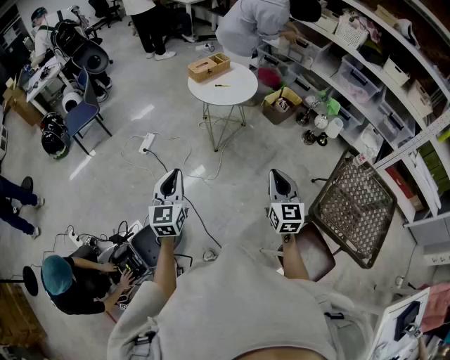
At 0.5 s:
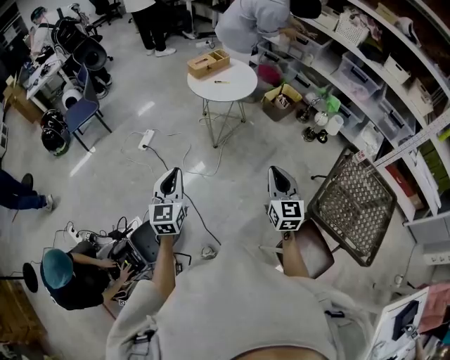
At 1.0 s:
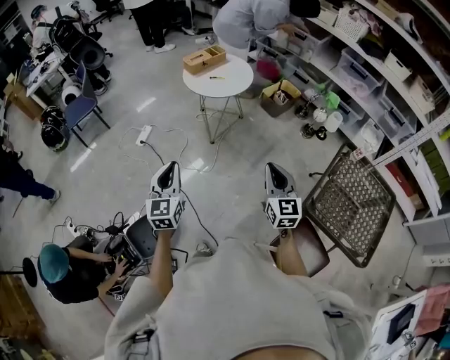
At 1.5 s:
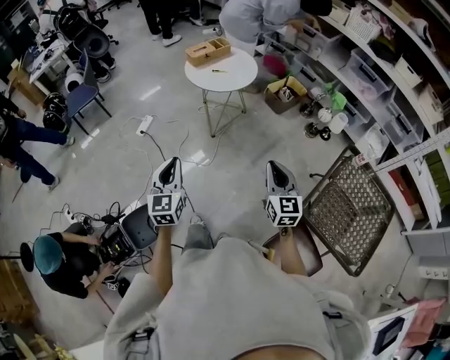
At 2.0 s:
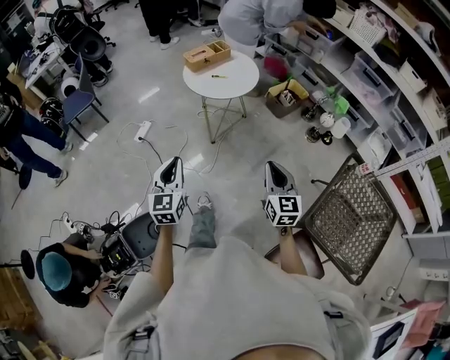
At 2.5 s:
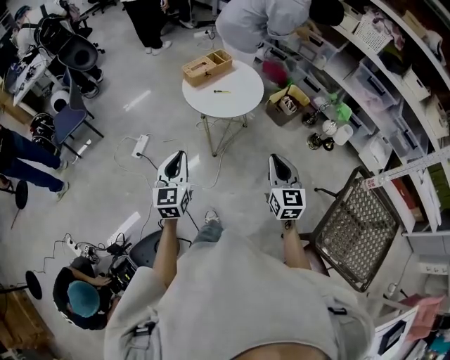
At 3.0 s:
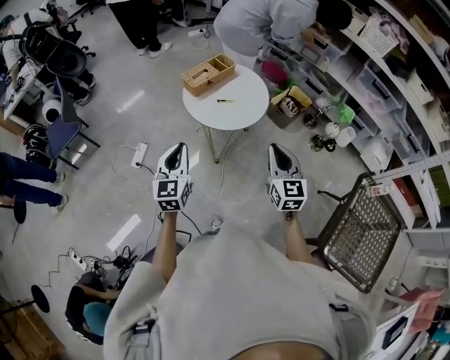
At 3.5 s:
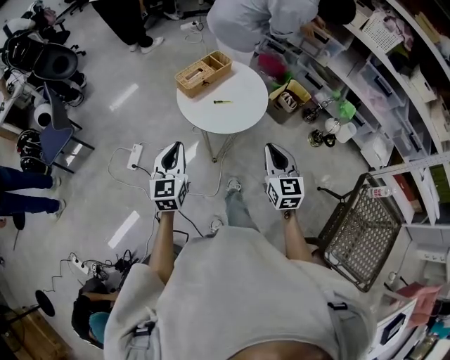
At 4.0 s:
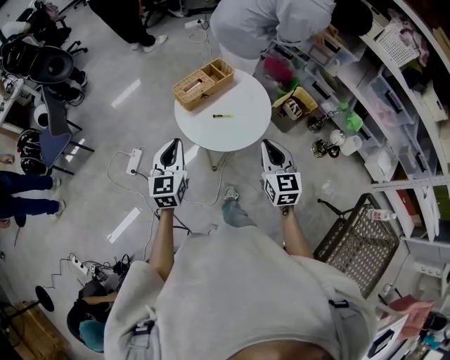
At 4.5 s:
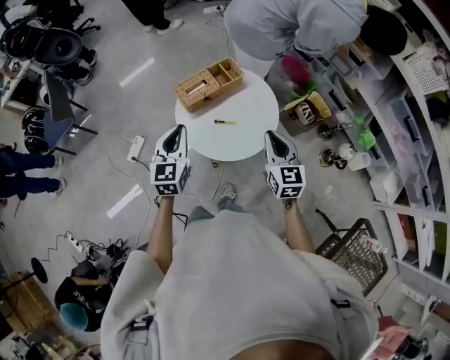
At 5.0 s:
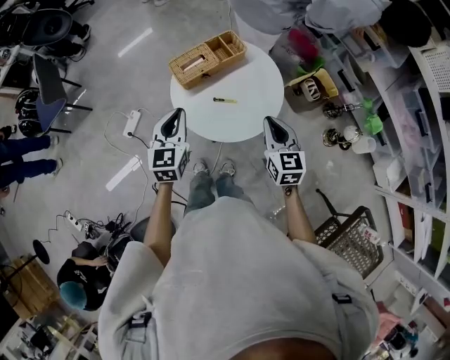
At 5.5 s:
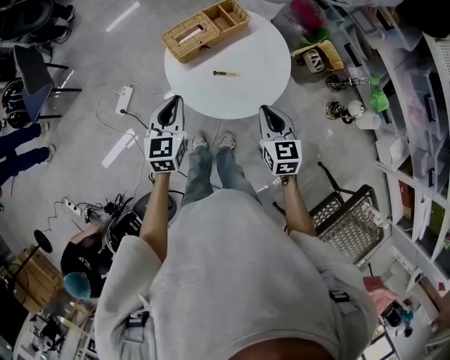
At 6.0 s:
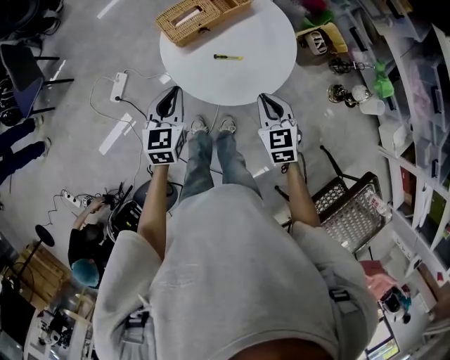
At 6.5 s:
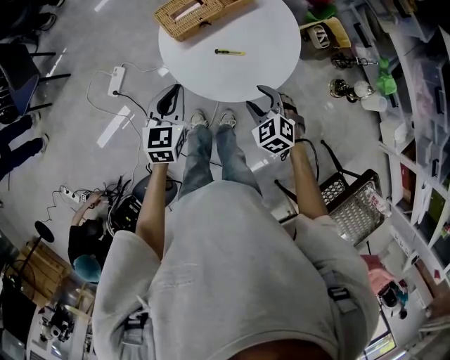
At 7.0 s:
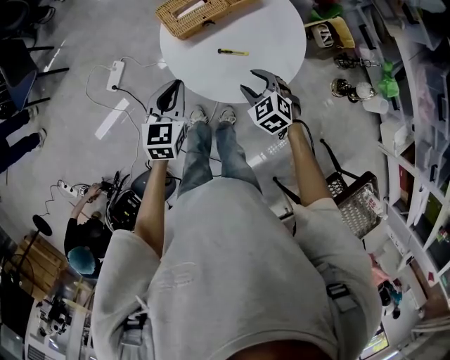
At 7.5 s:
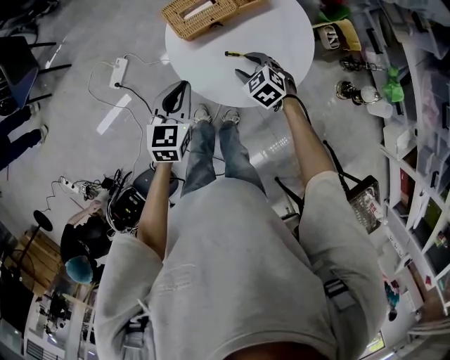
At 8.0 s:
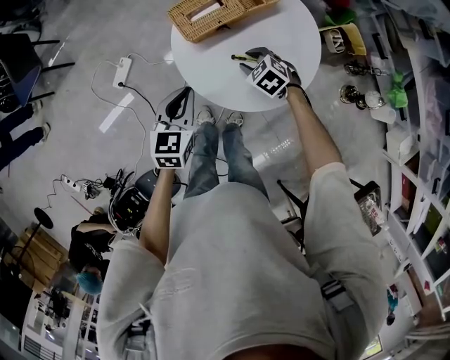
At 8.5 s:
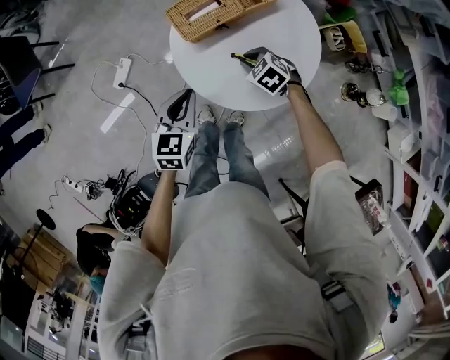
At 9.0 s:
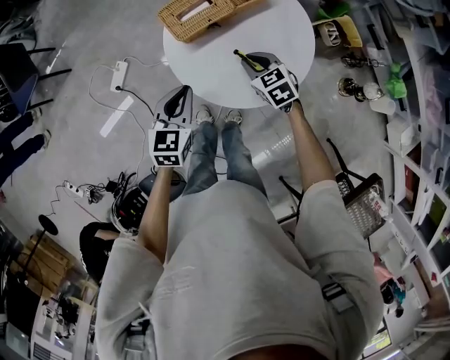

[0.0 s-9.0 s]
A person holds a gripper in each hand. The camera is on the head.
0.0 to 2.0 s: Both grippers travel together forward and to the right, roughly 10 cm.
2.0 to 4.5 s: The two grippers travel together, forward, approximately 50 cm.
4.5 to 7.0 s: The right gripper shifts approximately 25 cm downward and to the left, points its fingers roughly 40 degrees further downward, and opens. The left gripper moves downward, roughly 15 cm.
7.0 to 9.0 s: The right gripper heads forward, covering some 10 cm, and closes up.

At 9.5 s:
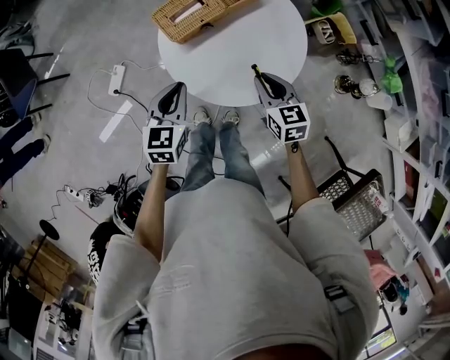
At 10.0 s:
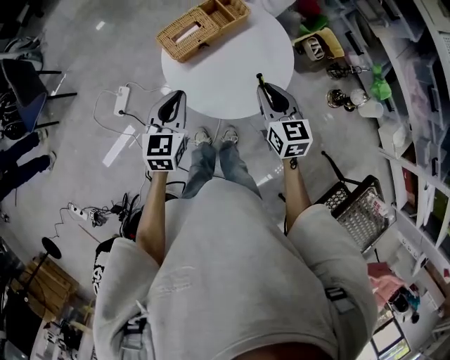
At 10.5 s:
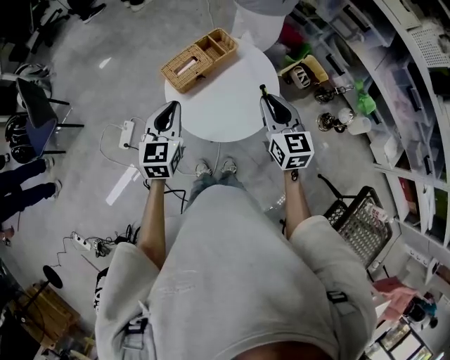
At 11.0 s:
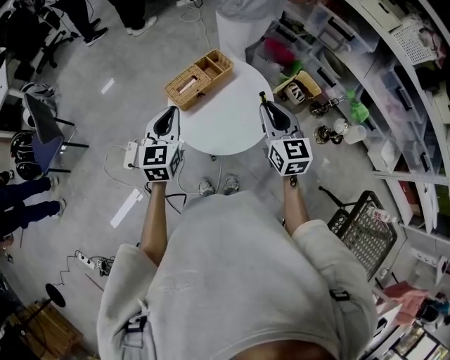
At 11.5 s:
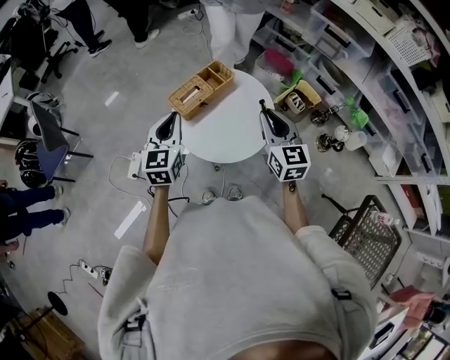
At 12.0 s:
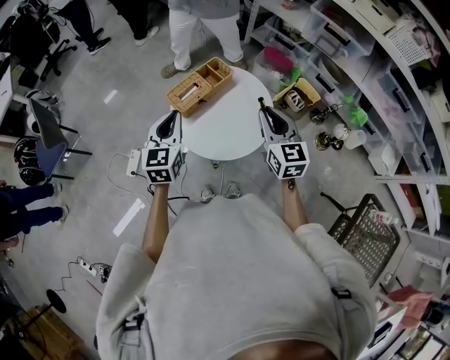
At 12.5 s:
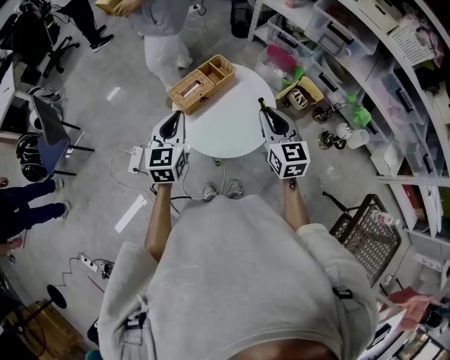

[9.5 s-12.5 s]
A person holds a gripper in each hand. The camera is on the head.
9.5 to 11.0 s: Both grippers move upward, some 20 cm. The right gripper rotates some 30 degrees.
11.0 to 12.5 s: The grippers move only a little.

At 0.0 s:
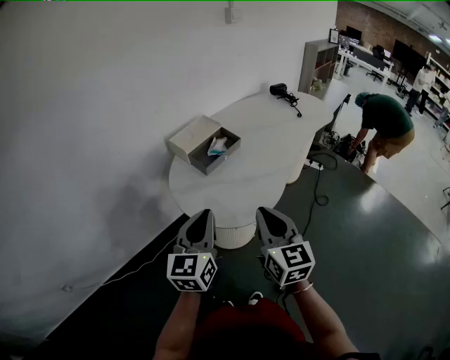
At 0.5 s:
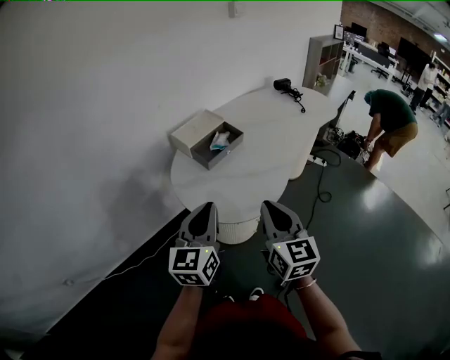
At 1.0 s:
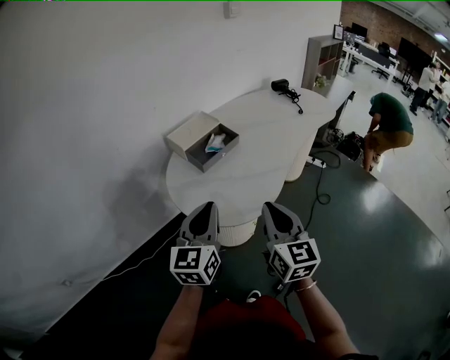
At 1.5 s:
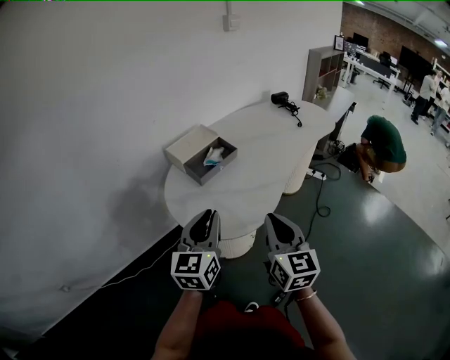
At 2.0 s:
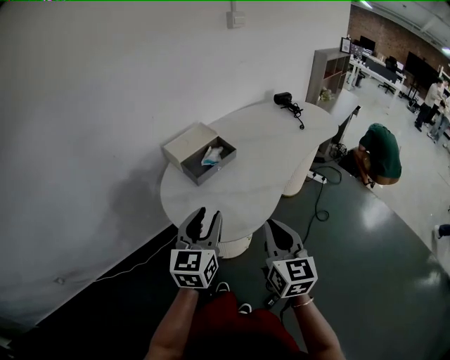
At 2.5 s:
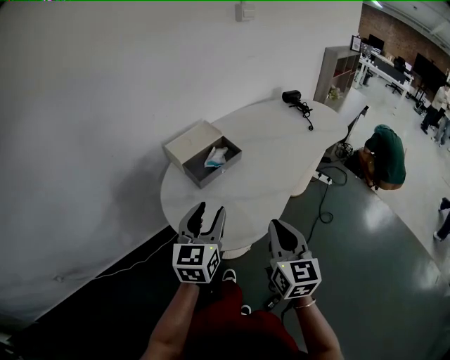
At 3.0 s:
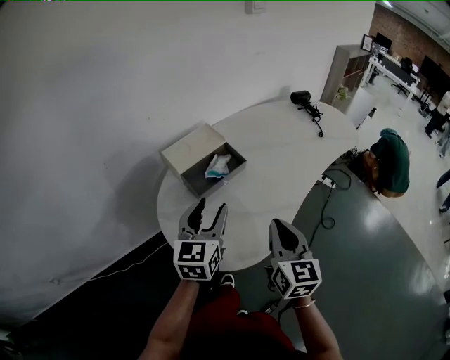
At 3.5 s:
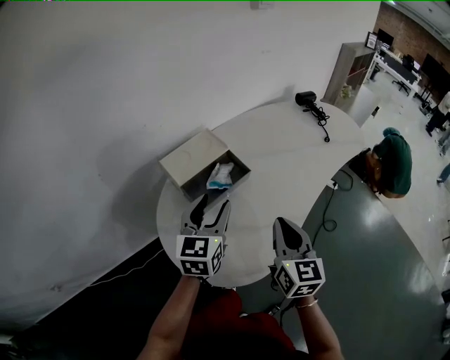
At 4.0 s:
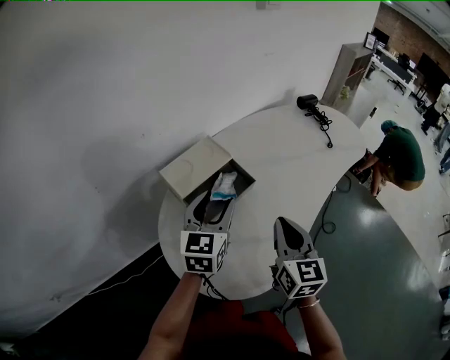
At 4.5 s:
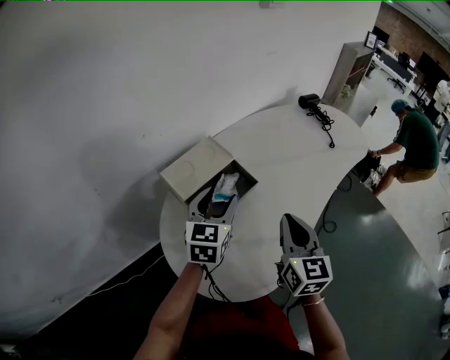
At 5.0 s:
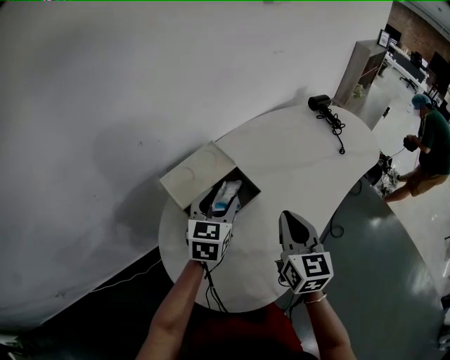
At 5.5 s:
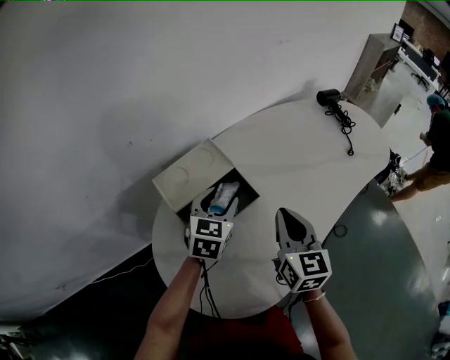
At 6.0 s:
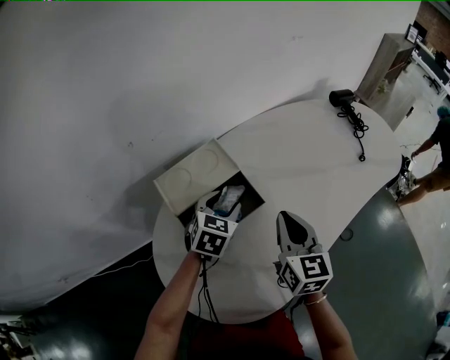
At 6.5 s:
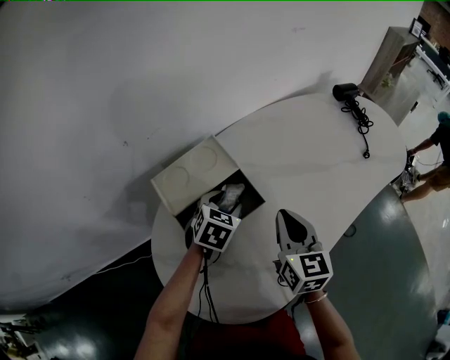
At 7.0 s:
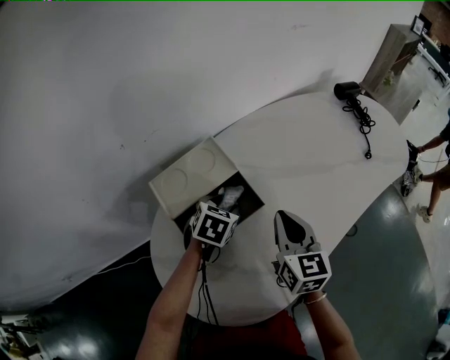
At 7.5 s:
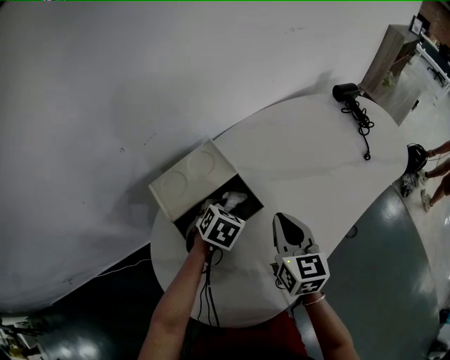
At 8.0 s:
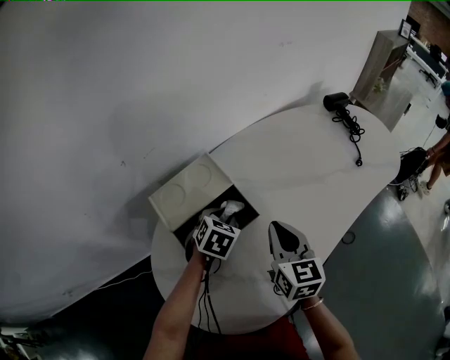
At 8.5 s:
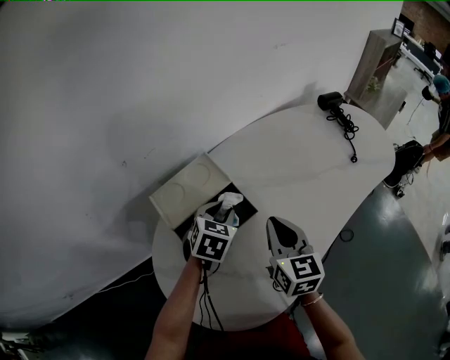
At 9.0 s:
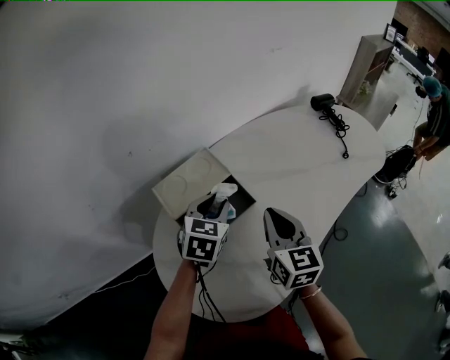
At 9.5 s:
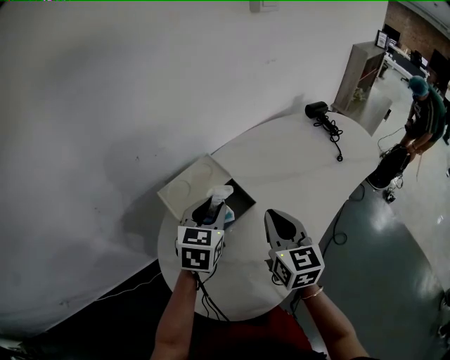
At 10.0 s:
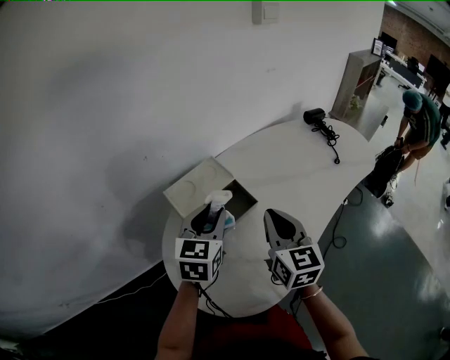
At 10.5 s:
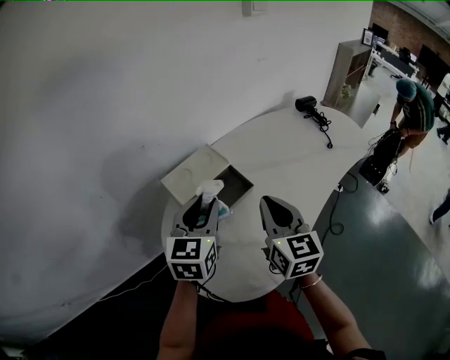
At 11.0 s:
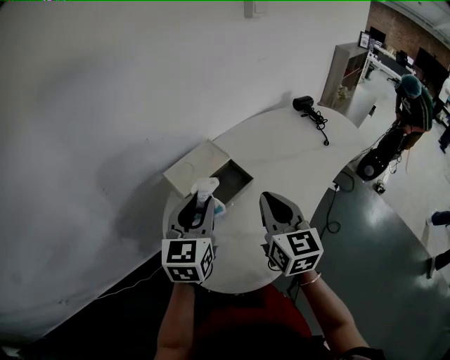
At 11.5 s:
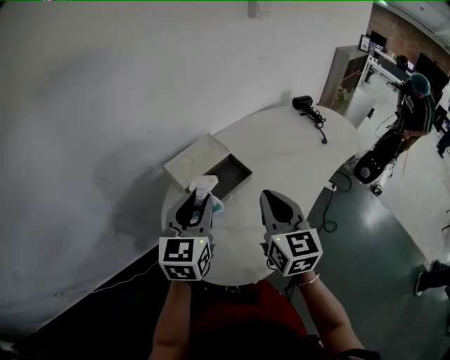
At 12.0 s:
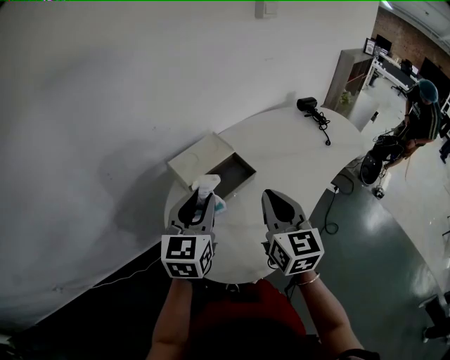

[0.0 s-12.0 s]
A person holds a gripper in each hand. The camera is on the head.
0.0 to 2.0 s: The right gripper moves to the right, approximately 10 cm; the left gripper travels to the right and forward by approximately 10 cm, and opens up.
2.0 to 4.0 s: The grippers both shift forward by about 25 cm.
4.0 to 6.0 s: The left gripper travels downward and forward by roughly 20 cm, and changes its angle by approximately 30 degrees; the right gripper is displaced forward by some 15 cm.
6.0 to 8.0 s: The left gripper closes up.
8.0 to 10.0 s: The left gripper shifts some 20 cm upward and backward, and tips its fingers upward by some 40 degrees, while the right gripper heads upward and backward, covering about 15 cm.
10.0 to 12.0 s: The two grippers go approximately 10 cm backward.

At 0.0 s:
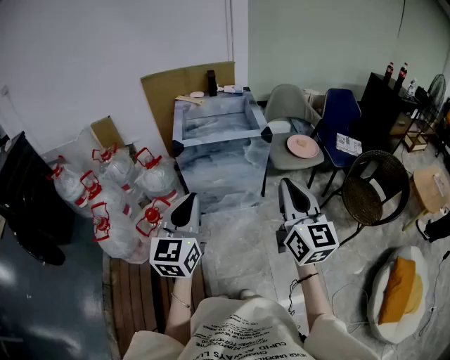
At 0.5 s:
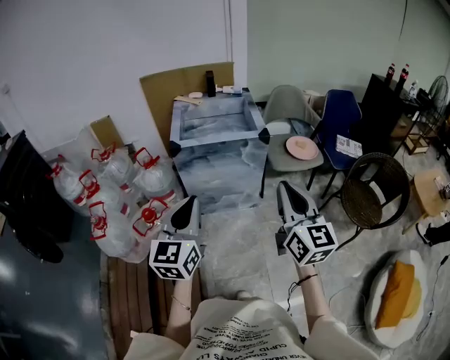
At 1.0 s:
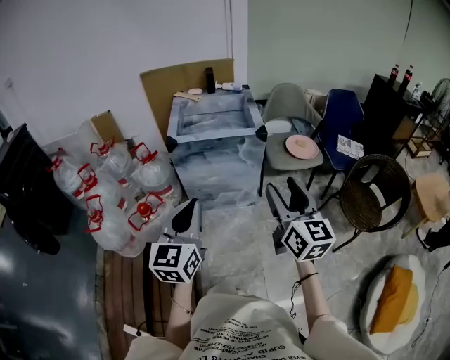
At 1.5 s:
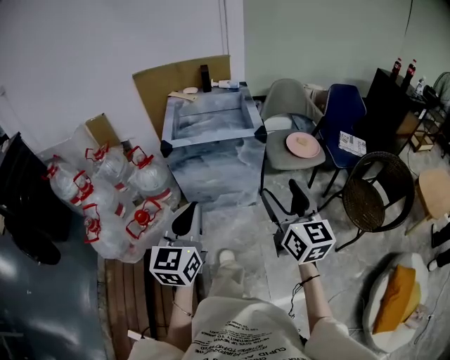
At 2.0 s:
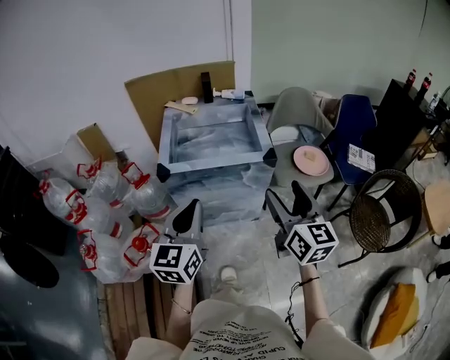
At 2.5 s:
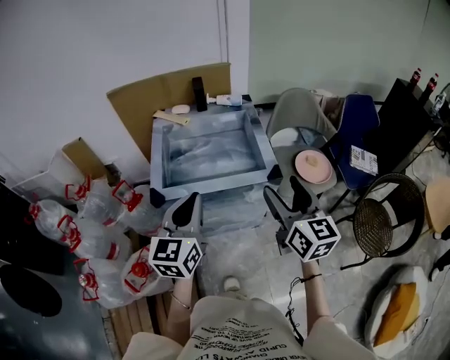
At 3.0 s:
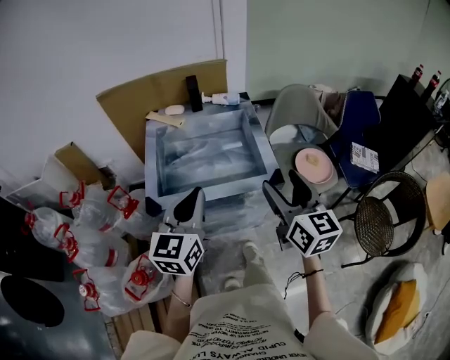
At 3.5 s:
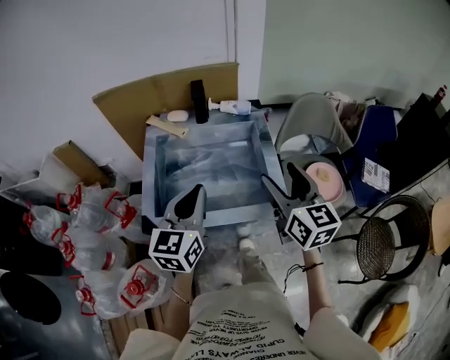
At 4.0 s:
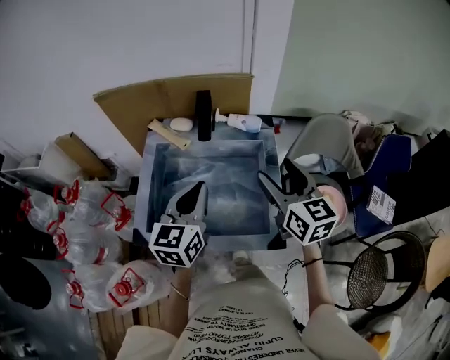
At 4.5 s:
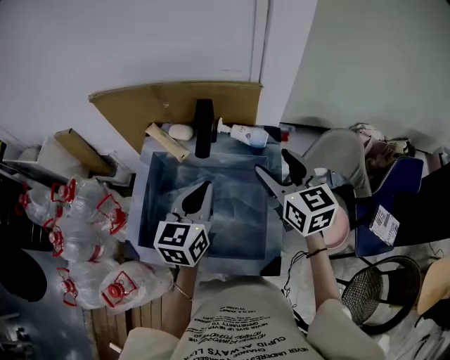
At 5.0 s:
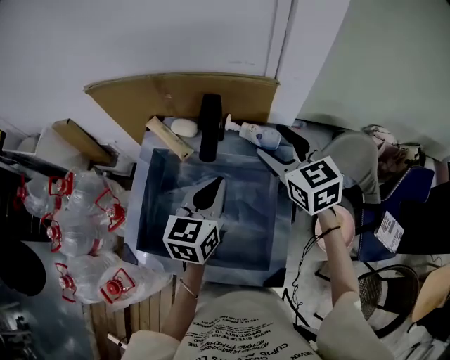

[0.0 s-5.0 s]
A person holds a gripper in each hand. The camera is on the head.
0.0 to 2.5 s: Both grippers move forward, roughly 35 cm. The right gripper opens up.
2.5 to 5.0 s: The grippers both shift forward by some 40 cm. The right gripper changes its angle by roughly 40 degrees.
